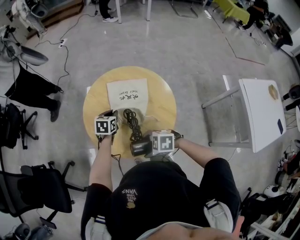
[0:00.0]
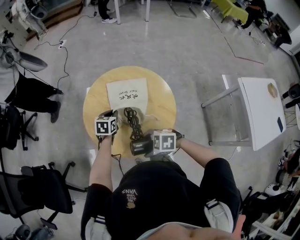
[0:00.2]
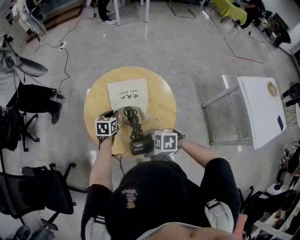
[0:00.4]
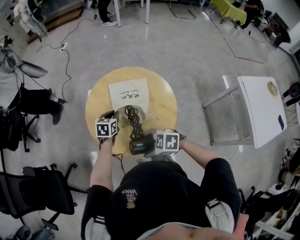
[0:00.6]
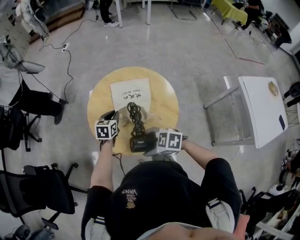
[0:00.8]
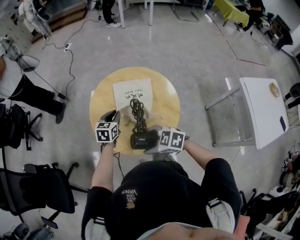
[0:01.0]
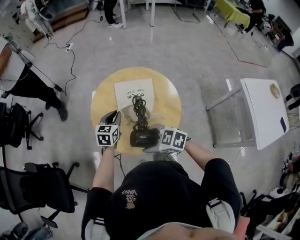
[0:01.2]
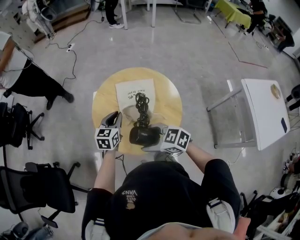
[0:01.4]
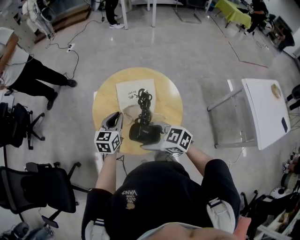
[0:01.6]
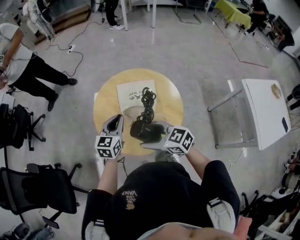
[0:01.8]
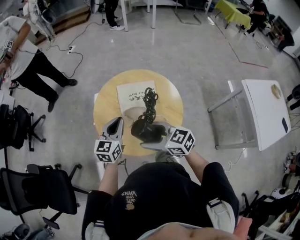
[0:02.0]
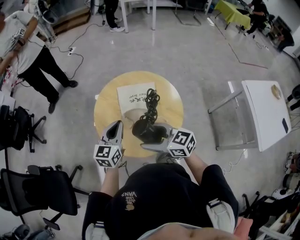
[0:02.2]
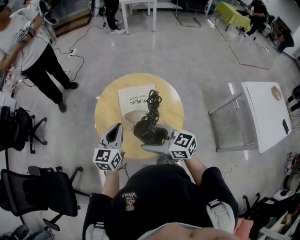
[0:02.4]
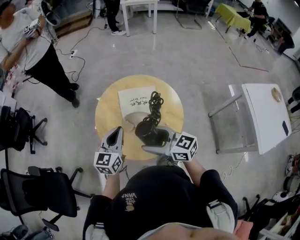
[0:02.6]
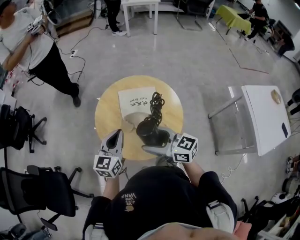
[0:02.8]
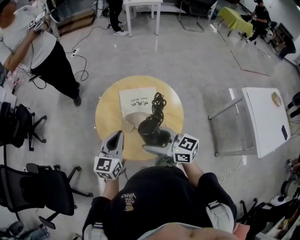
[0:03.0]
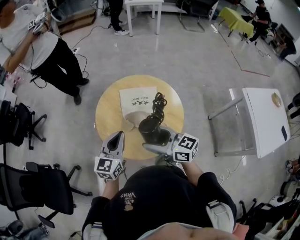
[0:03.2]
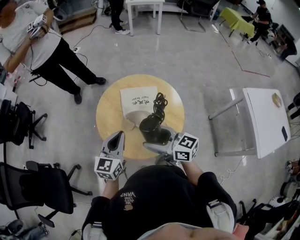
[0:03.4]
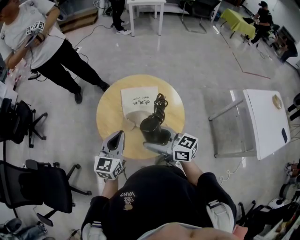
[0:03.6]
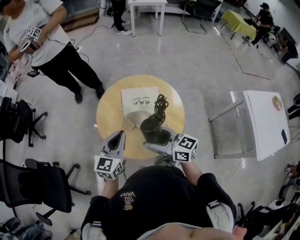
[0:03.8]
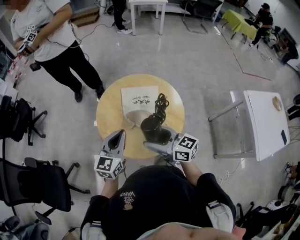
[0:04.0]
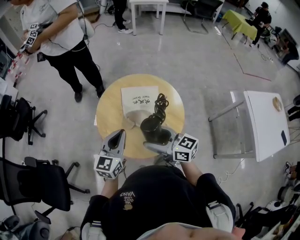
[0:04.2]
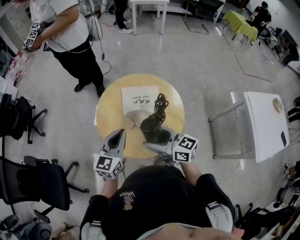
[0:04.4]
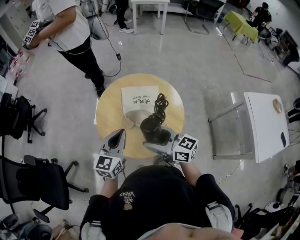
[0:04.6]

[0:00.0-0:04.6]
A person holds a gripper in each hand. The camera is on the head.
0.0 to 1.6 s: The two grippers go approximately 10 cm upward. The left gripper rotates roughly 20 degrees; the right gripper changes its angle by approximately 40 degrees.
1.6 to 3.0 s: The right gripper moves upward, some 5 cm, and rotates approximately 30 degrees. The left gripper shifts about 10 cm upward and backward.
3.0 to 4.6 s: Both grippers stay put.

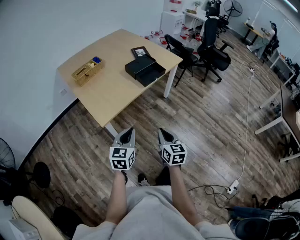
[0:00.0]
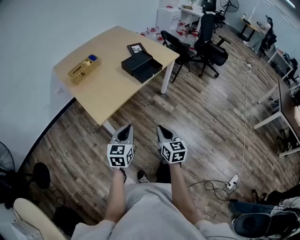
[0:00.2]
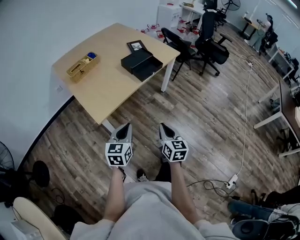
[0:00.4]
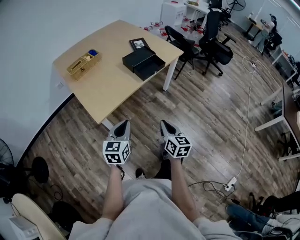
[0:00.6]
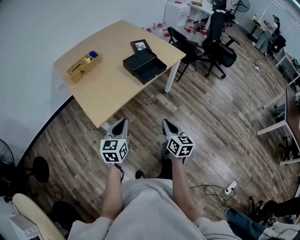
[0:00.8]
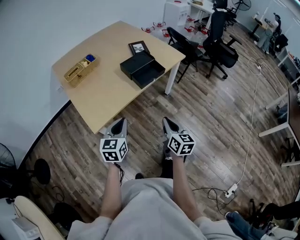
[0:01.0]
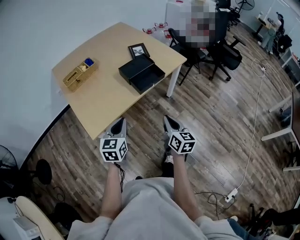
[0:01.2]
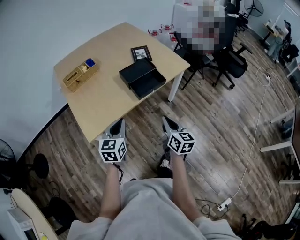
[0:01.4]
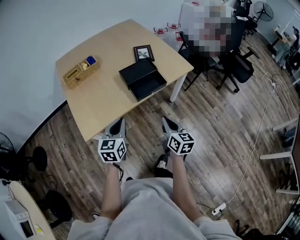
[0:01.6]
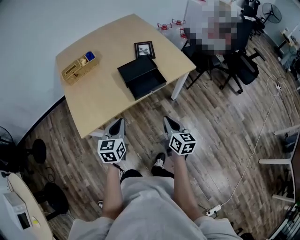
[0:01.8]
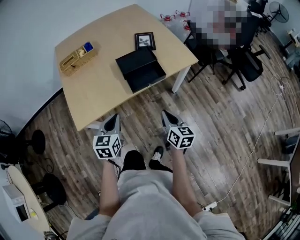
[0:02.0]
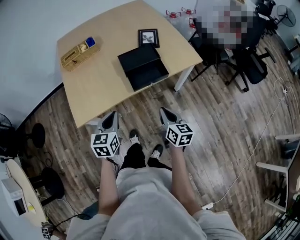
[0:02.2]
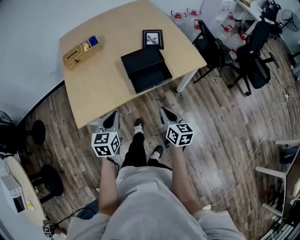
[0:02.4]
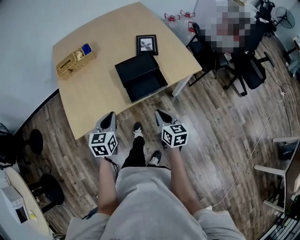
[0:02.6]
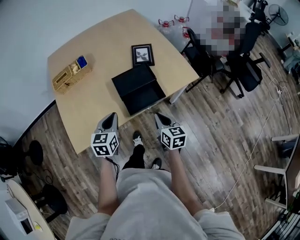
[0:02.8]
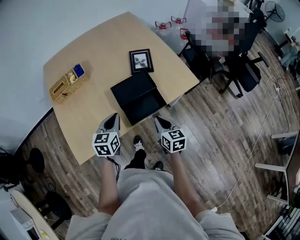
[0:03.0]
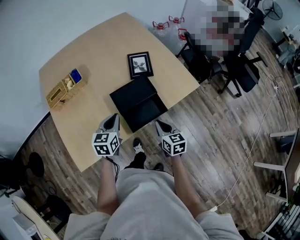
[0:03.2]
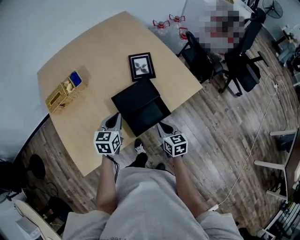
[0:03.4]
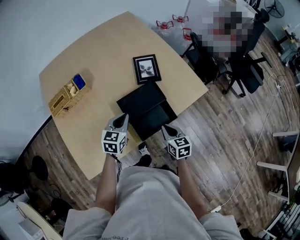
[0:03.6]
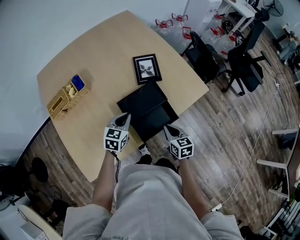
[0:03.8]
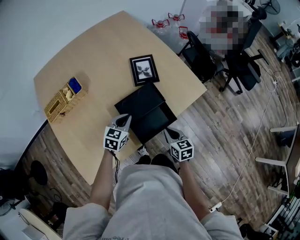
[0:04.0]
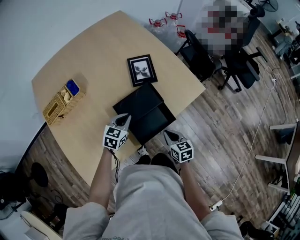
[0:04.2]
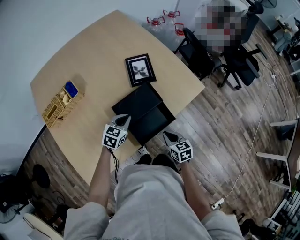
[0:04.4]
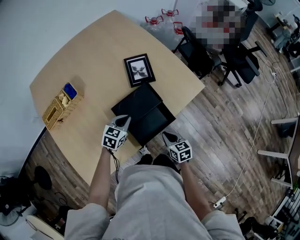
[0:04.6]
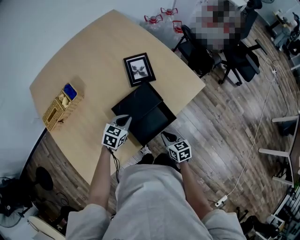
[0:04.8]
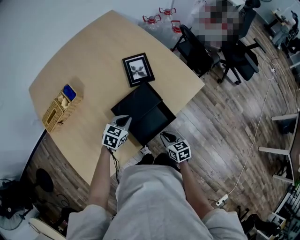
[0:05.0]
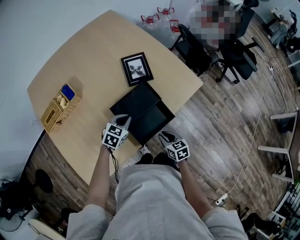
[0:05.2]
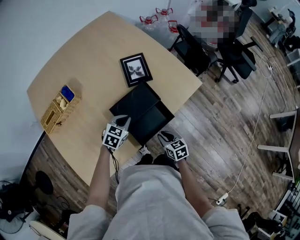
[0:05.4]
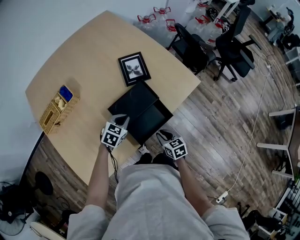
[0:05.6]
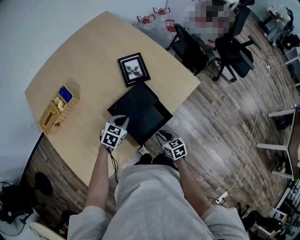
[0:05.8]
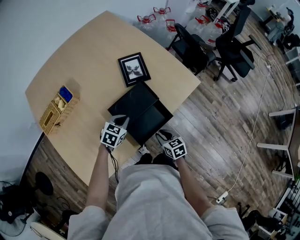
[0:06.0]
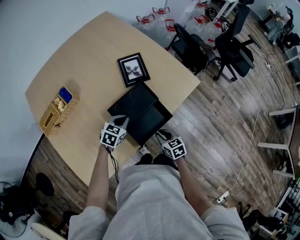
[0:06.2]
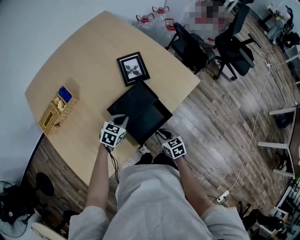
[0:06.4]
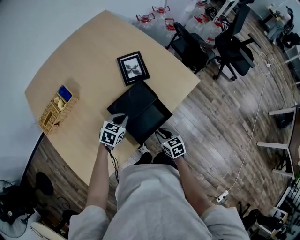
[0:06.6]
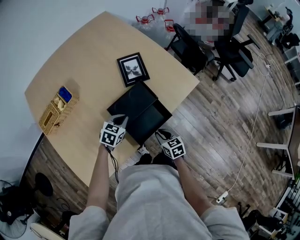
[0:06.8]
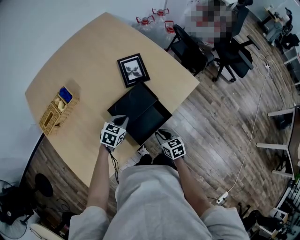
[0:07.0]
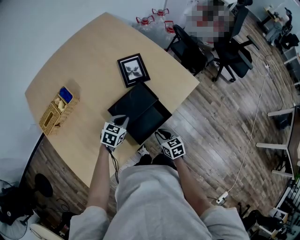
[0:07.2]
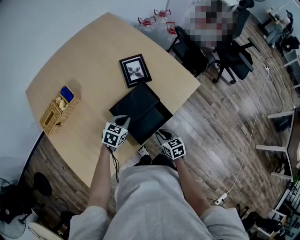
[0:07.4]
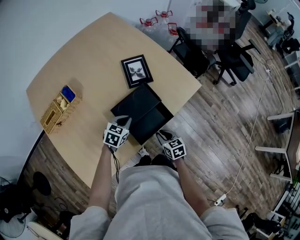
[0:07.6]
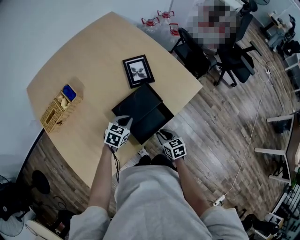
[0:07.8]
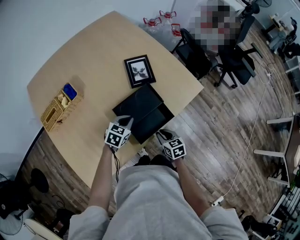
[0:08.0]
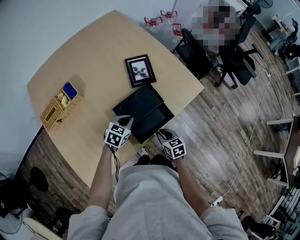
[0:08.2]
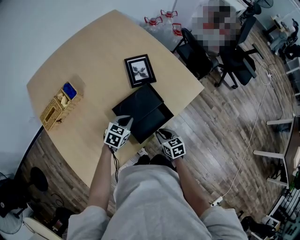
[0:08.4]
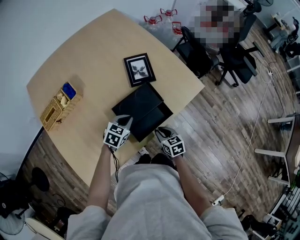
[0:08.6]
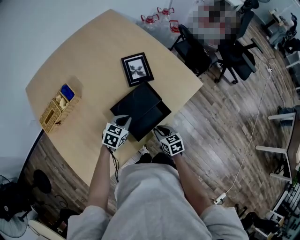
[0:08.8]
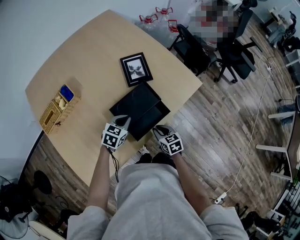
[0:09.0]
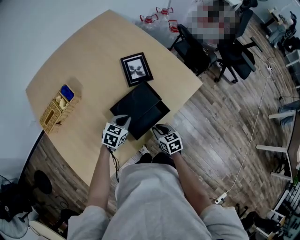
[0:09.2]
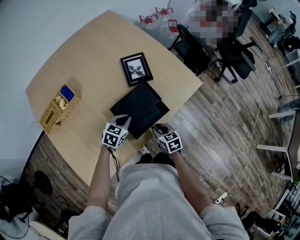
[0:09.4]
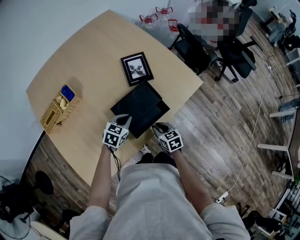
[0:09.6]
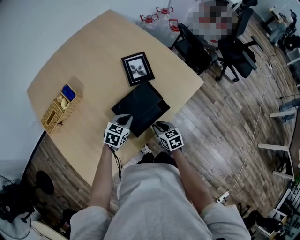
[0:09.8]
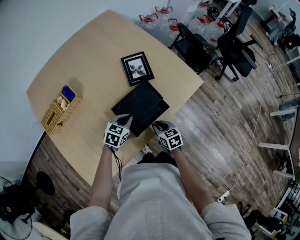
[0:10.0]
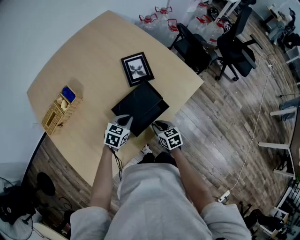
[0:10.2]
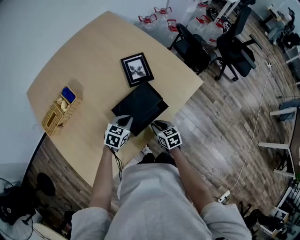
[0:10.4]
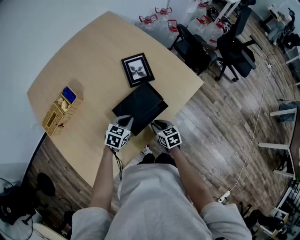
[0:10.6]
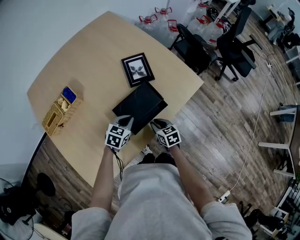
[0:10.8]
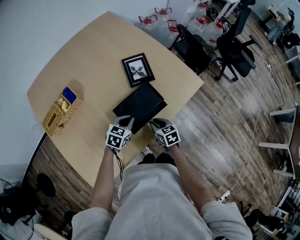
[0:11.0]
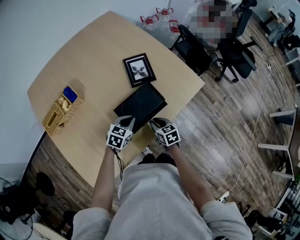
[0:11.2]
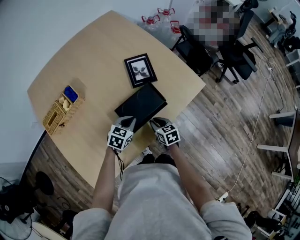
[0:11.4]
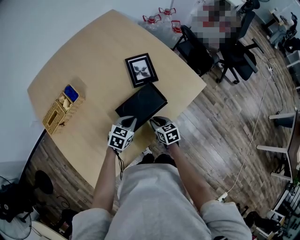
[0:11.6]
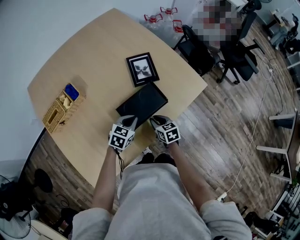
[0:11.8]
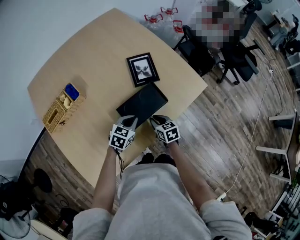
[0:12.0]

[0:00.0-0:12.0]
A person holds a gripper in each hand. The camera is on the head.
0.0 to 1.6 s: The right gripper moves forward and to the right, roughly 30 cm, while the left gripper moves forward, approximately 25 cm.
1.6 to 3.0 s: Both grippers travel together forward, roughly 20 cm.
3.0 to 4.4 s: The right gripper shifts some 10 cm downward. The left gripper heads forward and downward, covering roughly 15 cm, and swivels about 30 degrees.
4.4 to 6.0 s: The grippers make only small movements.
6.0 to 7.6 s: The two grippers keep their place.
7.6 to 10.4 s: The grippers move only a little.
10.4 to 12.0 s: The grippers move only a little.

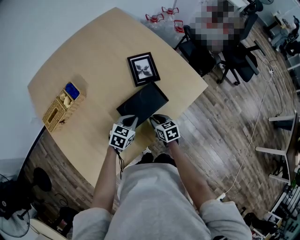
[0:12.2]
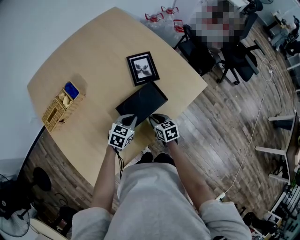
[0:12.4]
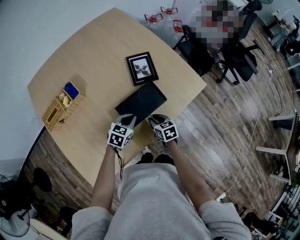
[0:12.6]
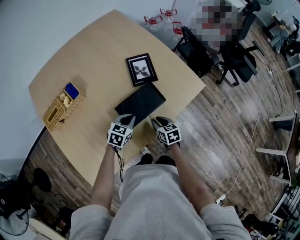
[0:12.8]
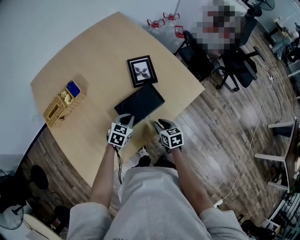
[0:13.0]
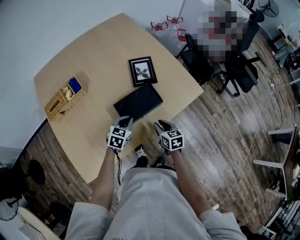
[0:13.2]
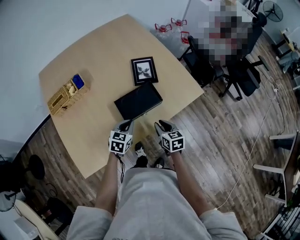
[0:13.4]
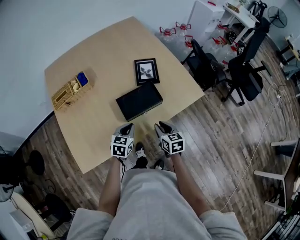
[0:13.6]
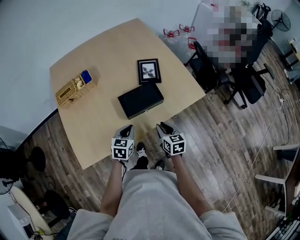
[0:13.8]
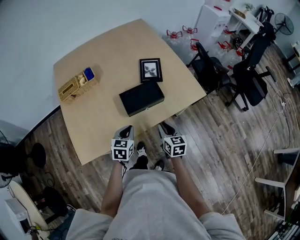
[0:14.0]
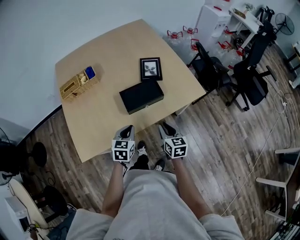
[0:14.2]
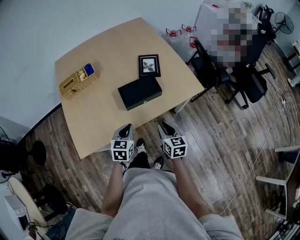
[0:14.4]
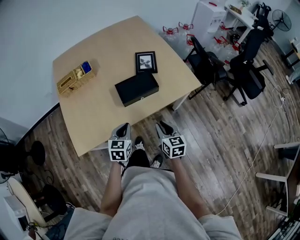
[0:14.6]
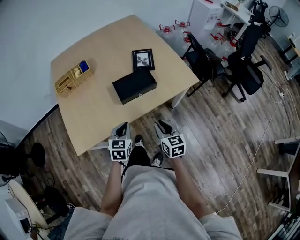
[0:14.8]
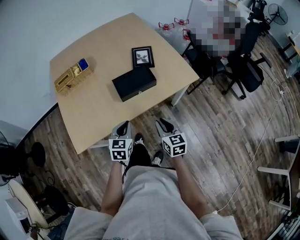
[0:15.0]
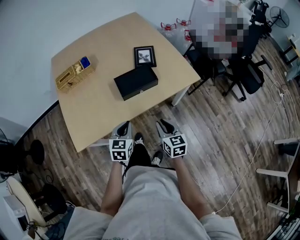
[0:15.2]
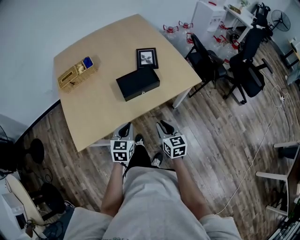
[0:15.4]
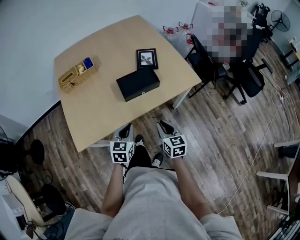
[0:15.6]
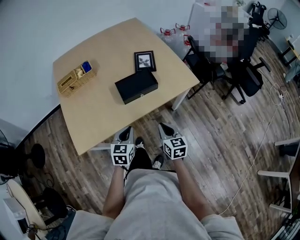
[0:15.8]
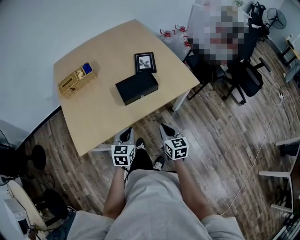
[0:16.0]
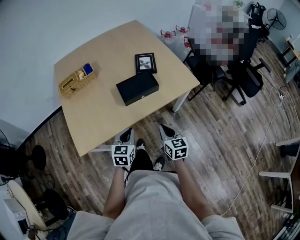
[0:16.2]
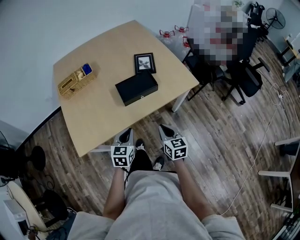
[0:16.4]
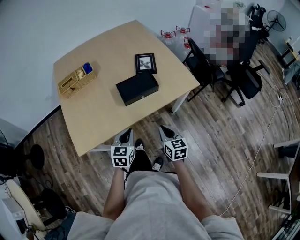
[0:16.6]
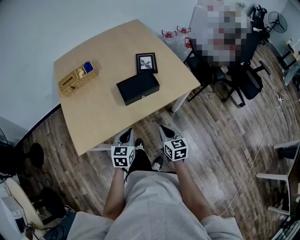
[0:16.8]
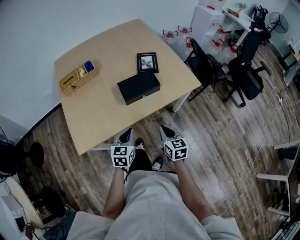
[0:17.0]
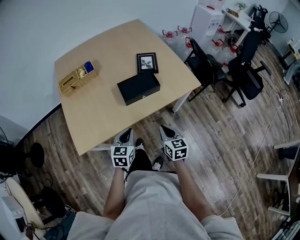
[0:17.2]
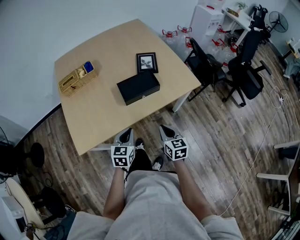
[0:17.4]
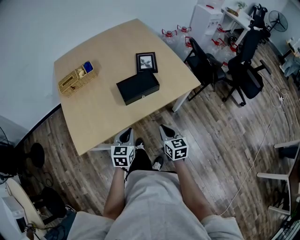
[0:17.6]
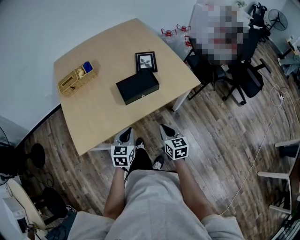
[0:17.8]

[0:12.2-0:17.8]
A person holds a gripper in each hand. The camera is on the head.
12.2 to 13.6 s: The right gripper heads upward, backward and to the right, covering some 15 cm. Meanwhile the left gripper travels backward by approximately 10 cm, and swivels roughly 20 degrees.
13.6 to 15.0 s: The two grippers go about 15 cm backward.
15.0 to 16.4 s: The grippers make only small movements.
16.4 to 17.8 s: Both grippers stay put.

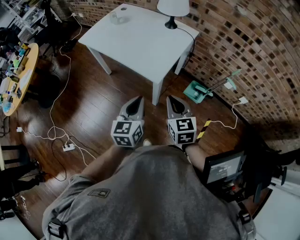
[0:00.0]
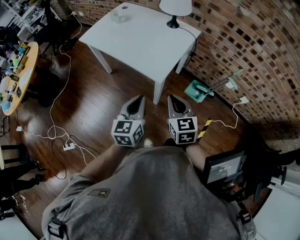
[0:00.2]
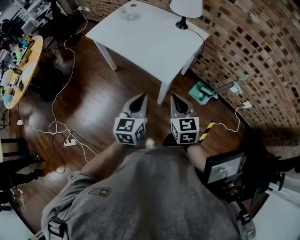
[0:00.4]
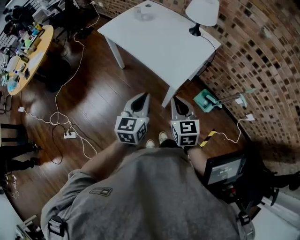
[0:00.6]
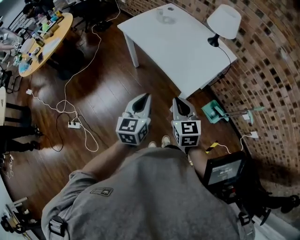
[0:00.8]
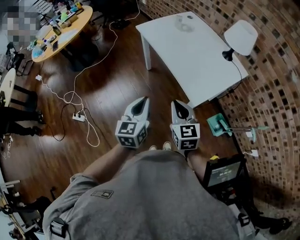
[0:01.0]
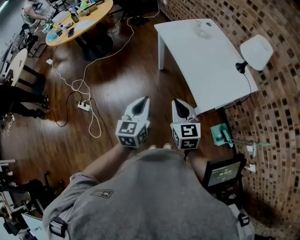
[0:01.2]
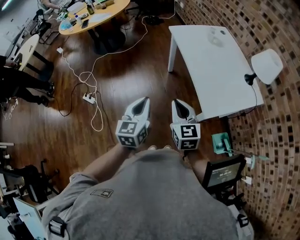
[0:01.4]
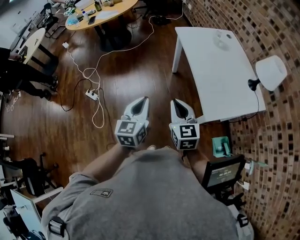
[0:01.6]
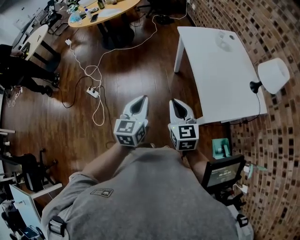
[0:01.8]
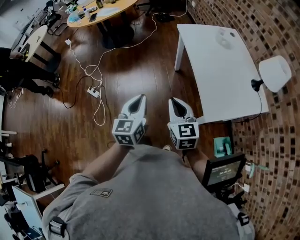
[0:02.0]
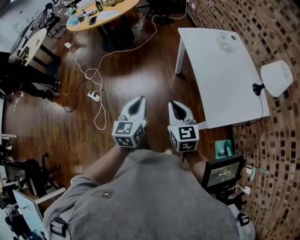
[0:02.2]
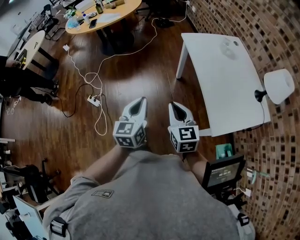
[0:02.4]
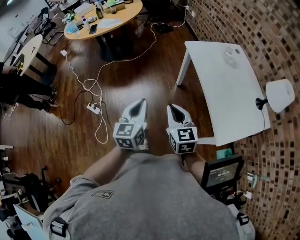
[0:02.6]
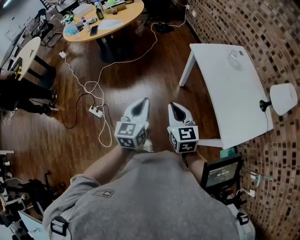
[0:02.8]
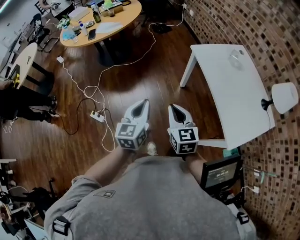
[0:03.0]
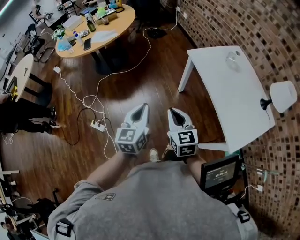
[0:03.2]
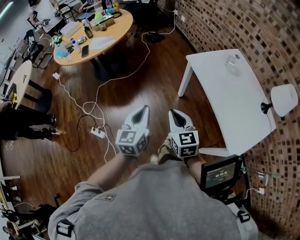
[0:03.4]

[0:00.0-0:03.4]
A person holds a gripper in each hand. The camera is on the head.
0.0 to 1.6 s: The right gripper ends up approximately 25 cm from where it was, and rotates roughly 40 degrees. Meanwhile the left gripper changes place by some 20 cm, and turns by approximately 40 degrees.
1.6 to 3.4 s: Both grippers move forward and to the left, roughly 30 cm.
